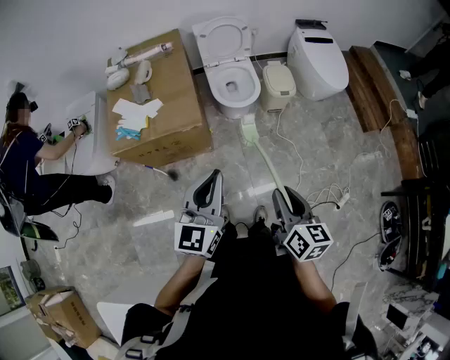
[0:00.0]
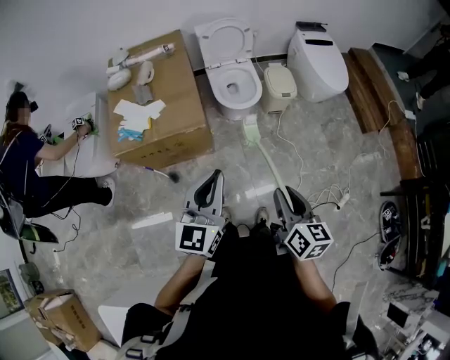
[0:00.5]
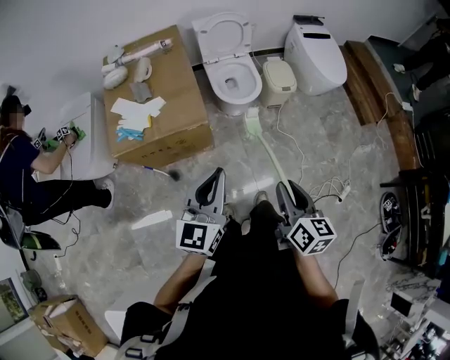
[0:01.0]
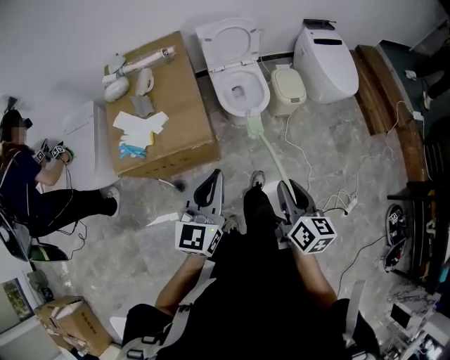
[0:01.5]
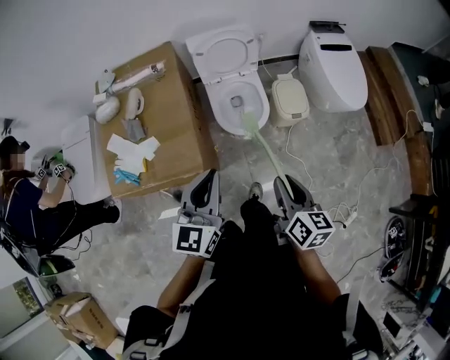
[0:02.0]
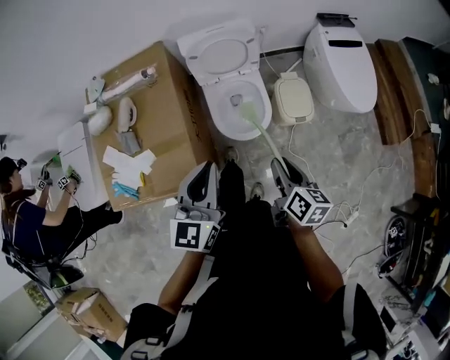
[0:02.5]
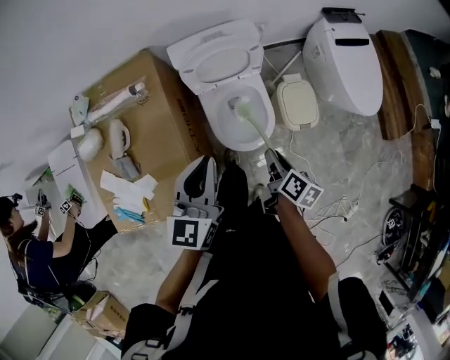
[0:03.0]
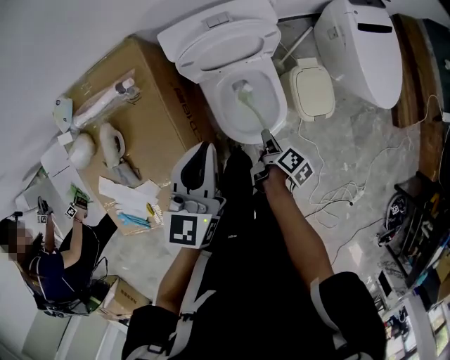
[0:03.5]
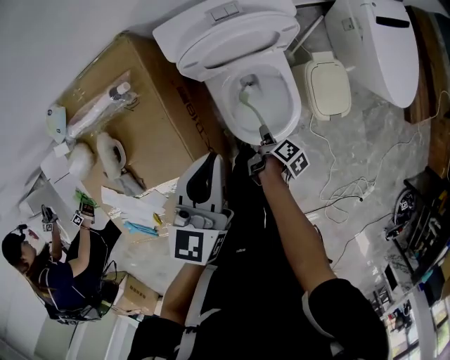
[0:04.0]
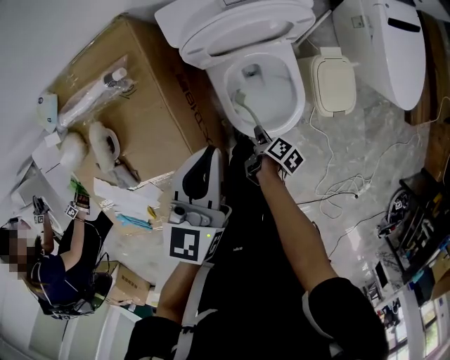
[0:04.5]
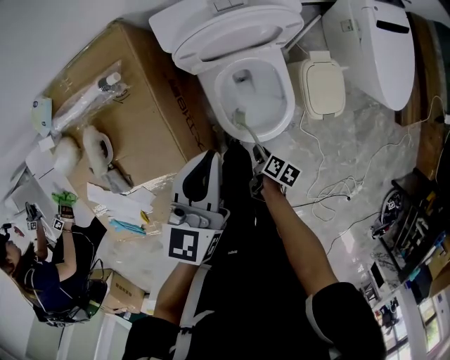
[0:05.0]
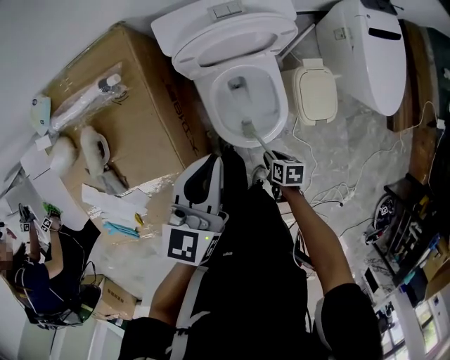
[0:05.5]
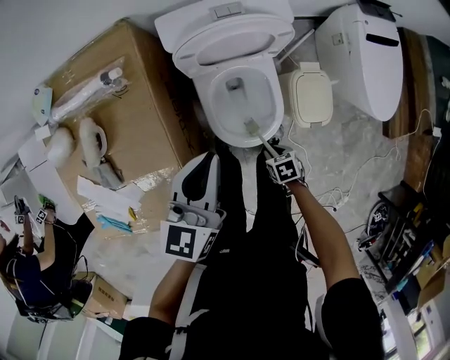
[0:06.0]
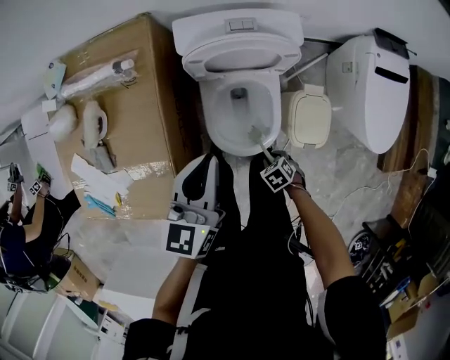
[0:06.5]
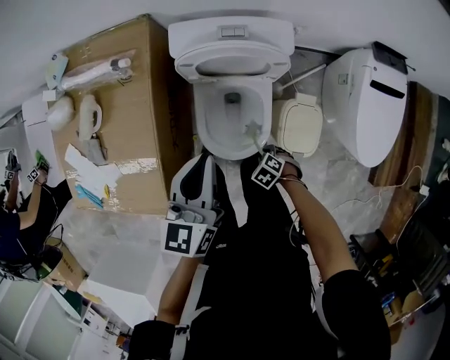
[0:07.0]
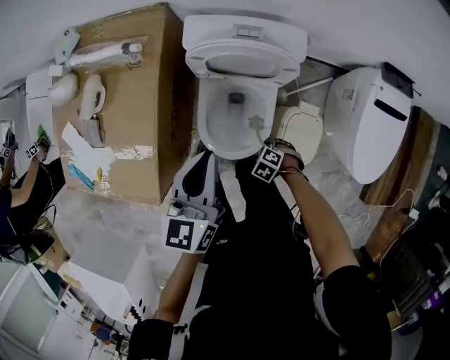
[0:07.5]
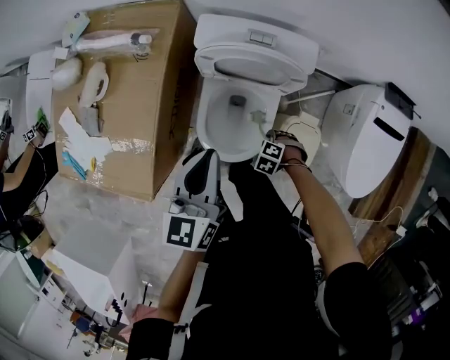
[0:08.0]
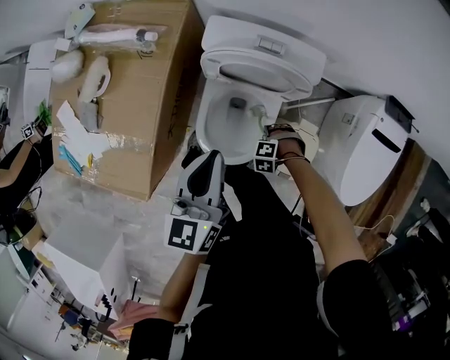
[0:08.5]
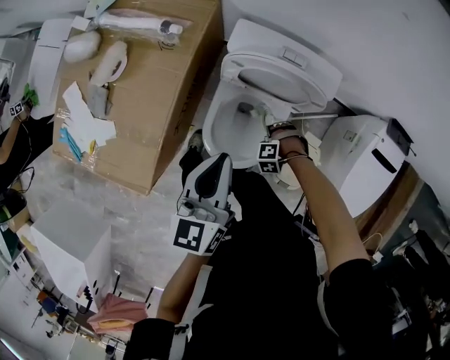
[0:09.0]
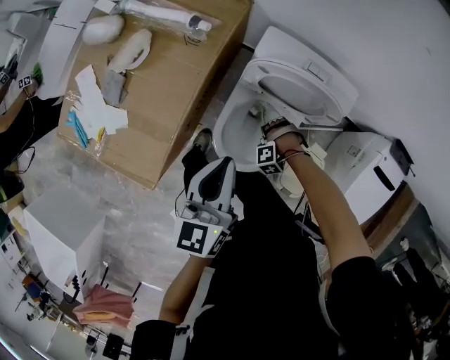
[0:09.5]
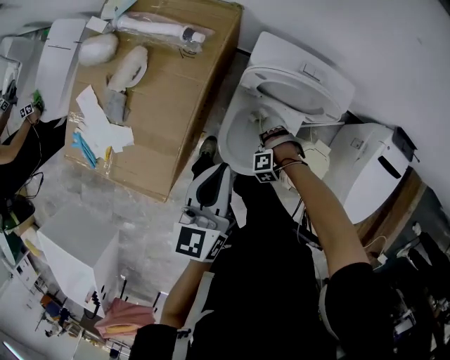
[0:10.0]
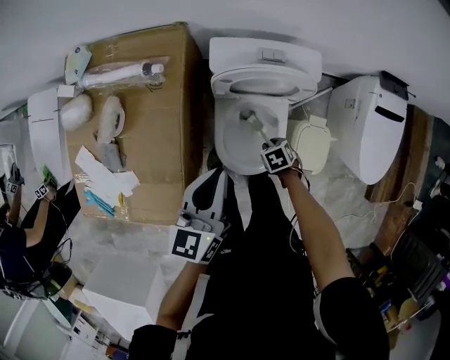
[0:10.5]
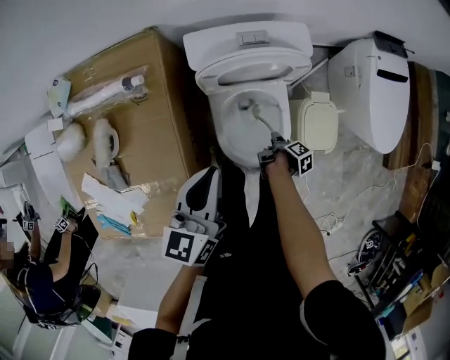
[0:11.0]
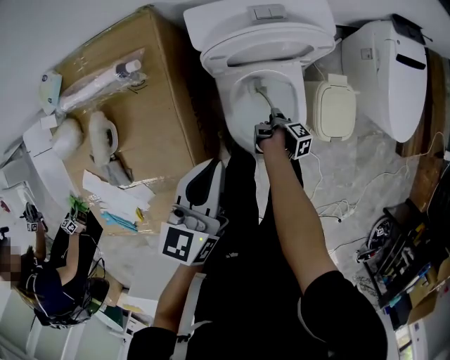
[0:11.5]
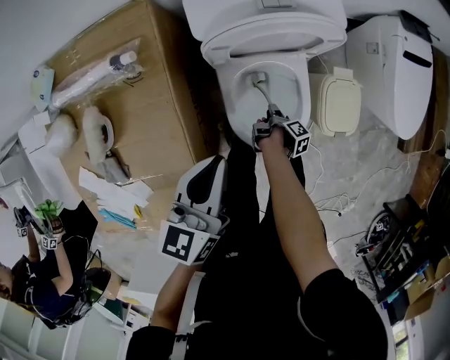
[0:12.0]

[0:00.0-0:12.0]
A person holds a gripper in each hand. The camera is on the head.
0:00.0 to 0:02.0: The left gripper moves approximately 30 cm.
0:02.0 to 0:04.0: The left gripper shifts by some 50 cm.
0:06.0 to 0:08.0: The left gripper shifts by approximately 5 cm, and swivels about 30 degrees.
0:08.0 to 0:10.0: The left gripper moves about 10 cm.
0:10.0 to 0:12.0: The left gripper goes approximately 10 cm downward, and swivels roughly 40 degrees.

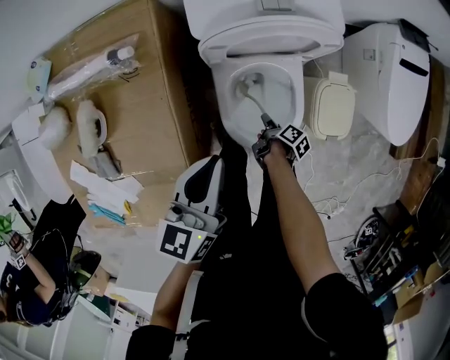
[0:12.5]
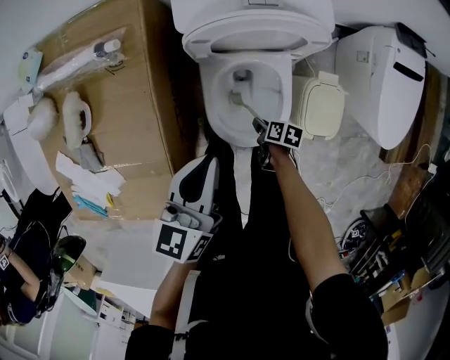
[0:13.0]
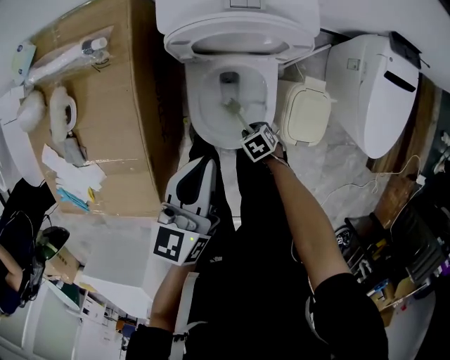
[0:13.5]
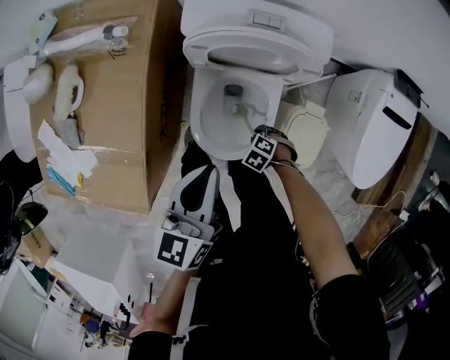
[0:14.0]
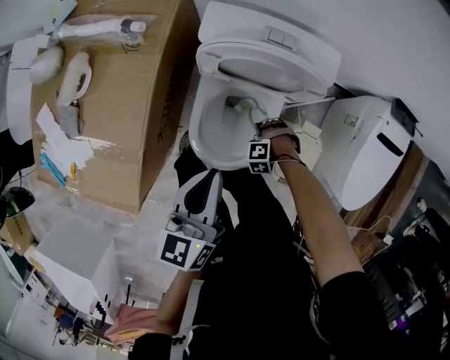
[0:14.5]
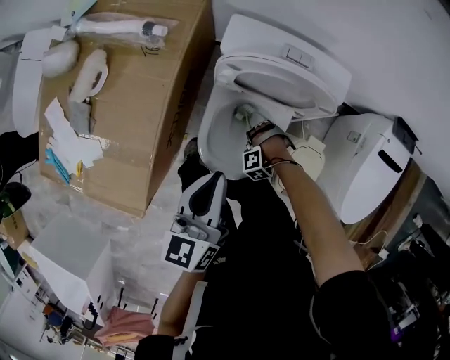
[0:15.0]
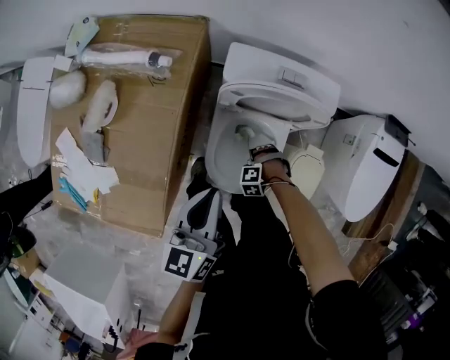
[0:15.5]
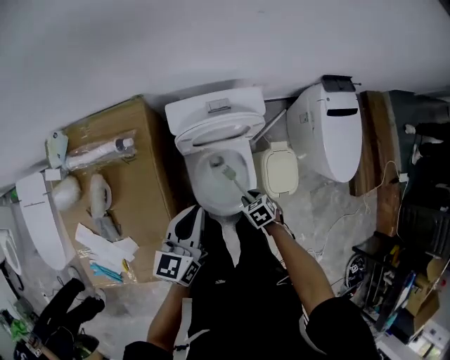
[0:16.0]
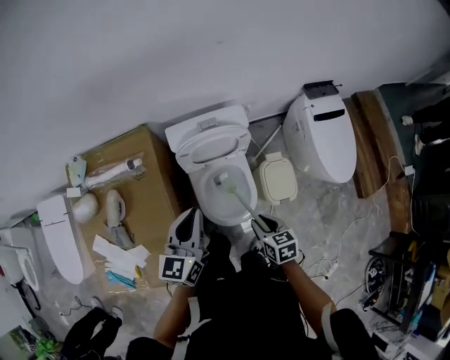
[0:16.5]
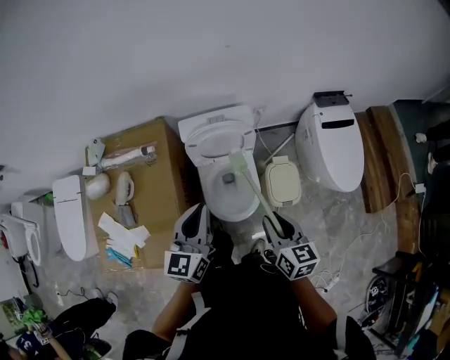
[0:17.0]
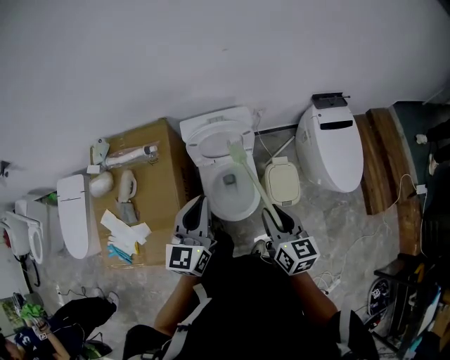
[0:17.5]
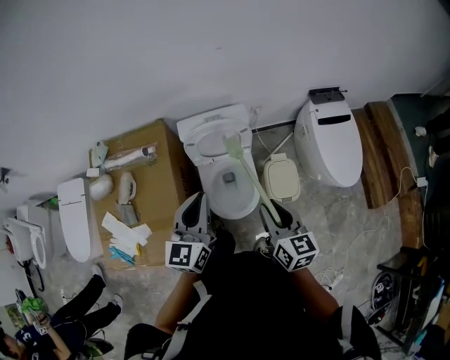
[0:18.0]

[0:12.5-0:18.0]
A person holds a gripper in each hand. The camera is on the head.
0:12.5 to 0:14.5: The left gripper shifts by roughly 10 cm, and turns by roughly 30 degrees.
0:14.5 to 0:16.0: The left gripper shifts some 10 cm upward, and rotates some 30 degrees.
0:16.0 to 0:18.0: The left gripper goes about 20 cm upward, and swivels some 20 degrees.

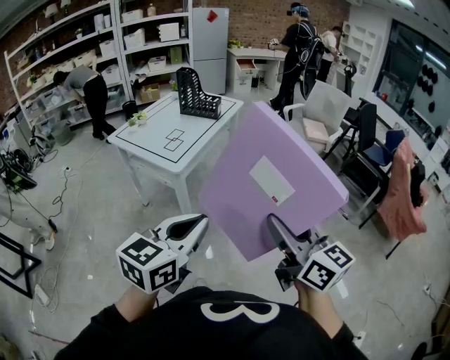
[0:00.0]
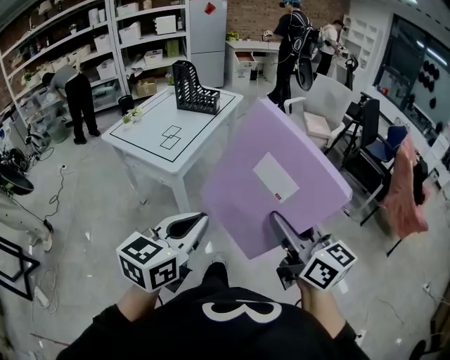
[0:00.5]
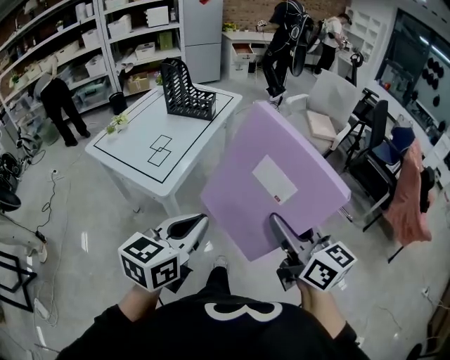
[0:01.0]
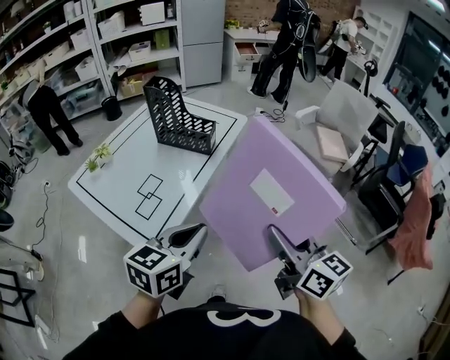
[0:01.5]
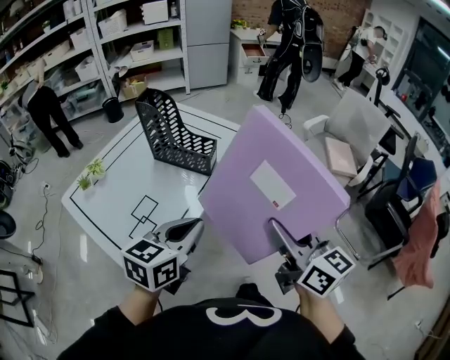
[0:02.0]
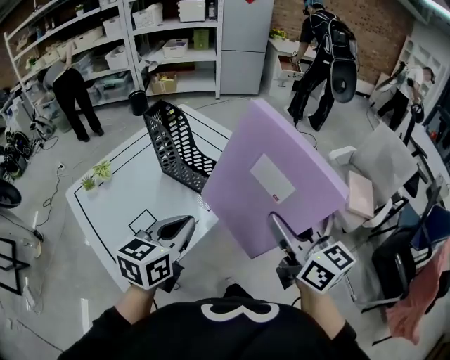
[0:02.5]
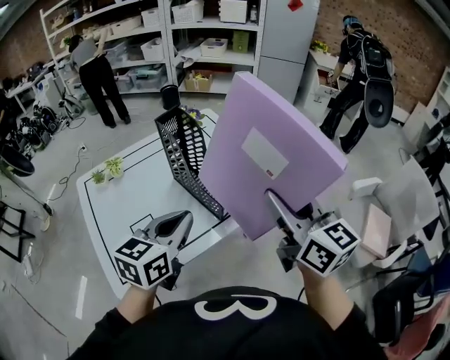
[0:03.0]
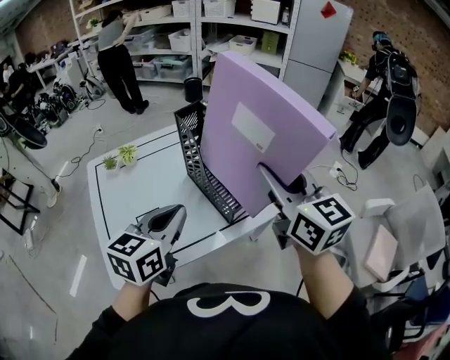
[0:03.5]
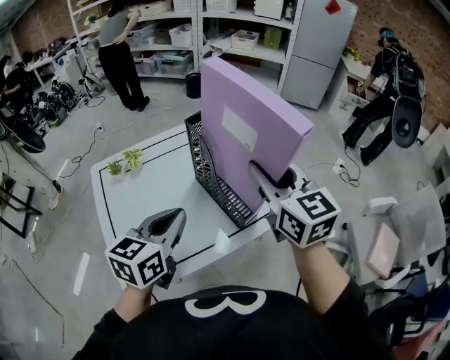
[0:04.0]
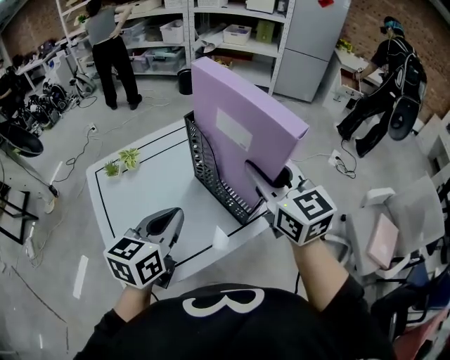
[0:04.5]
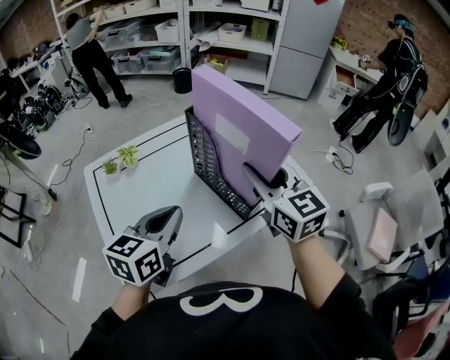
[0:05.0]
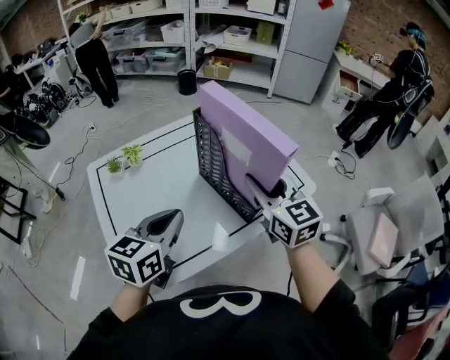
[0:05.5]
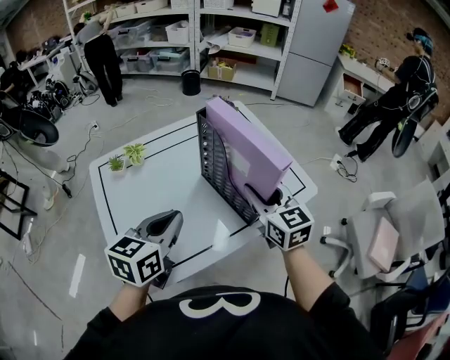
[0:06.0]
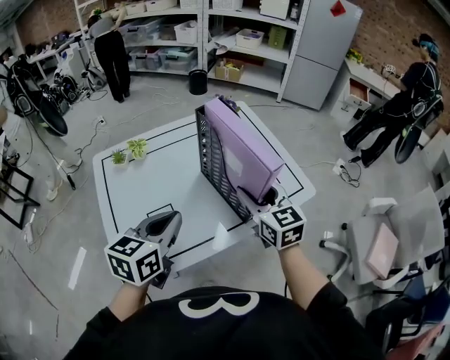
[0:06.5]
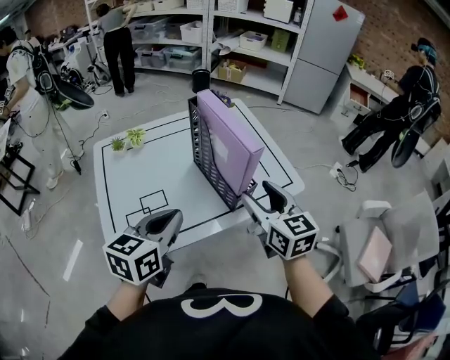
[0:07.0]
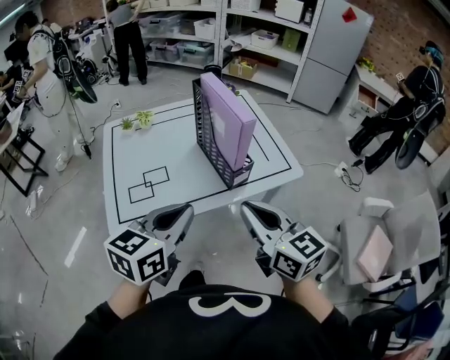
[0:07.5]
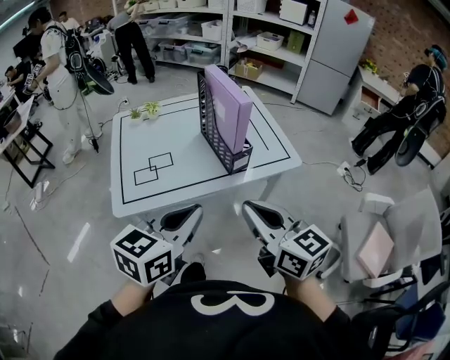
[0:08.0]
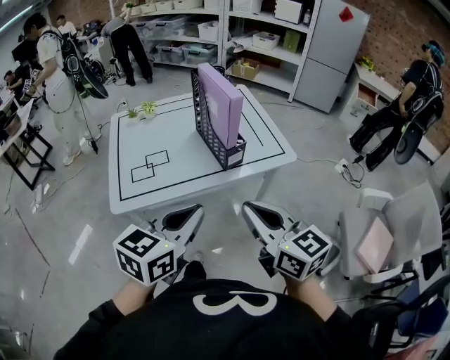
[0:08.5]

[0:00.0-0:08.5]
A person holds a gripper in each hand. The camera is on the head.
0:00.0 to 0:02.0: The pair of grippers is taken forward, some 60 cm.
0:02.0 to 0:04.0: The right gripper ends up approximately 40 cm from where it was, and turns by about 40 degrees; the left gripper shifts by some 20 cm, and turns by some 40 degrees.
0:04.0 to 0:06.5: The left gripper changes place by approximately 5 cm. Meanwhile the right gripper shifts some 15 cm downward.
0:06.5 to 0:08.5: The left gripper shifts approximately 30 cm backward and to the right; the right gripper travels backward by about 30 cm, swivels approximately 20 degrees, and closes.

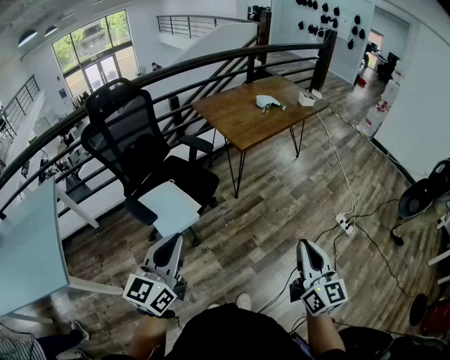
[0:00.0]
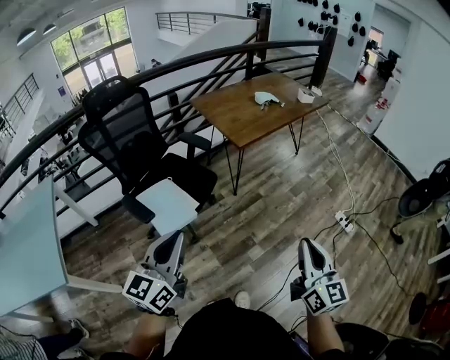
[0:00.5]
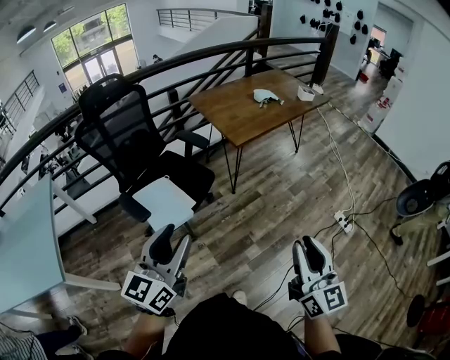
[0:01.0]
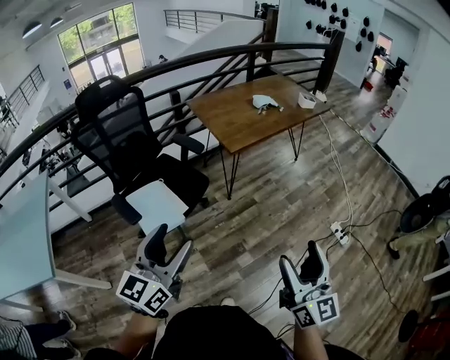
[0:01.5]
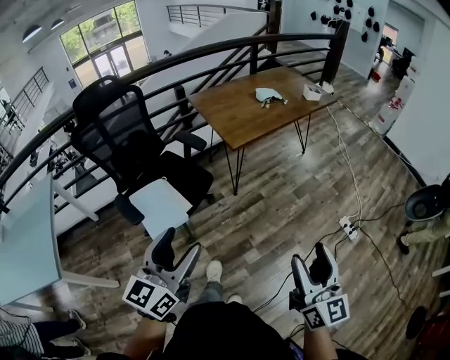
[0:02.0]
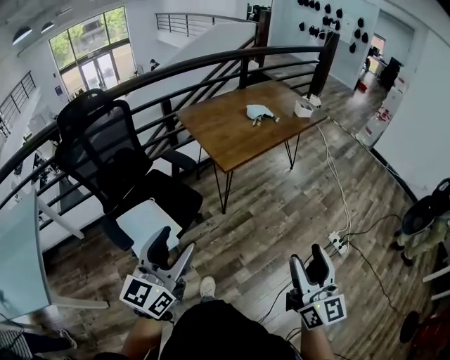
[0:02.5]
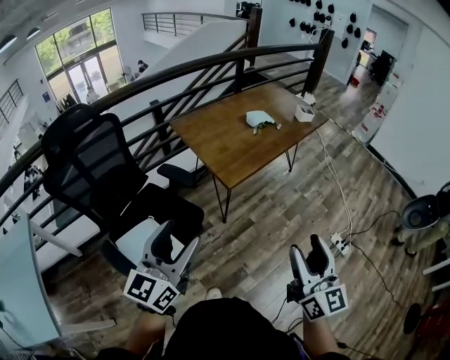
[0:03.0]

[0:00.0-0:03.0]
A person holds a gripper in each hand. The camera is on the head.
0:00.0 to 0:01.5: The right gripper changes place by roughly 5 cm, and opens up; the left gripper travels to the right by roughly 5 cm, and opens.
0:01.5 to 0:03.0: Both grippers travel together forward, some 20 cm.
